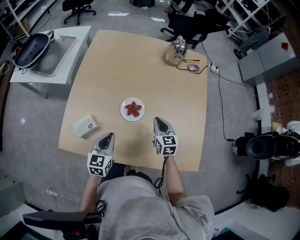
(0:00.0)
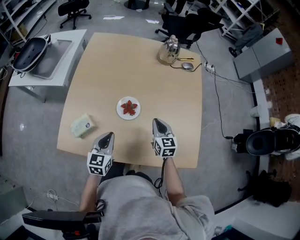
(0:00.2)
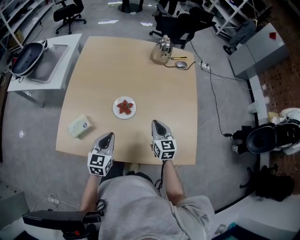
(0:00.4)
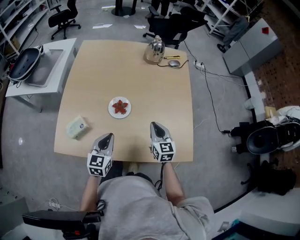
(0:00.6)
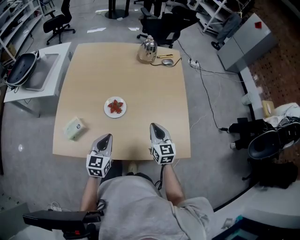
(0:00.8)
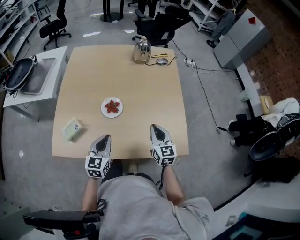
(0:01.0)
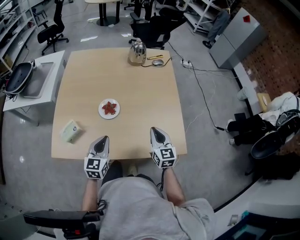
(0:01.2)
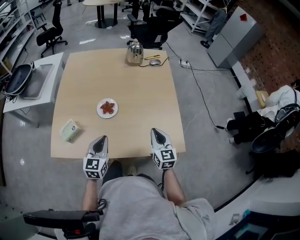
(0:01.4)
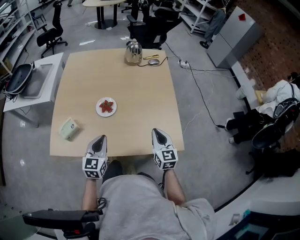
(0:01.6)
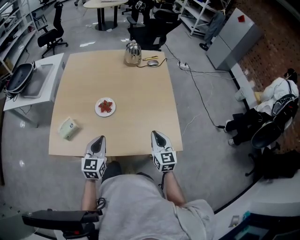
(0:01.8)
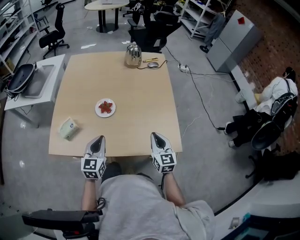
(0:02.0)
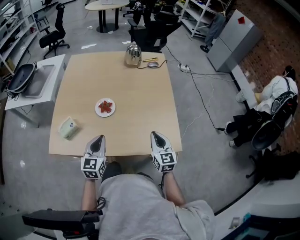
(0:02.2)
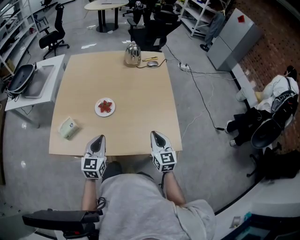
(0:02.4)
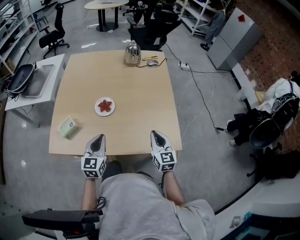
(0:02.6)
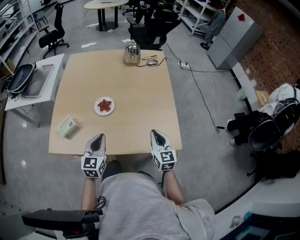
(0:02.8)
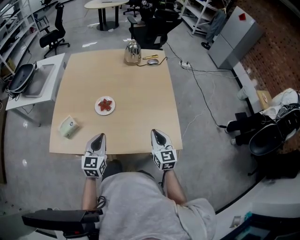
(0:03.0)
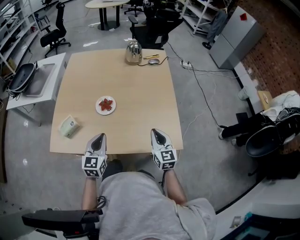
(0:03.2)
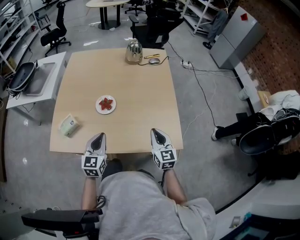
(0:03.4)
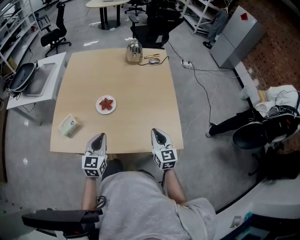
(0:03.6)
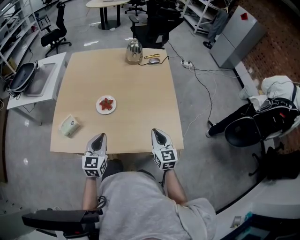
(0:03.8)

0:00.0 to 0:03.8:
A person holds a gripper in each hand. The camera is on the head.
0:00.0 to 0:01.2: The left gripper is displaced to the right, backward and upward by some 15 cm, while the right gripper heads backward, to the right and upward, covering roughly 20 cm.
0:01.2 to 0:02.6: The right gripper is displaced backward by roughly 5 cm.
0:02.6 to 0:03.8: Both grippers stay about where they are.

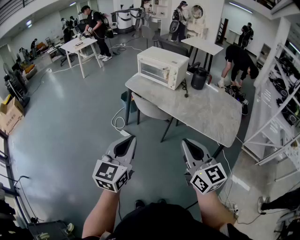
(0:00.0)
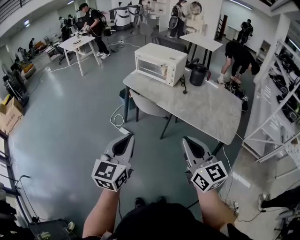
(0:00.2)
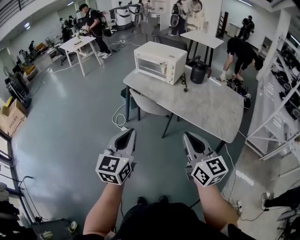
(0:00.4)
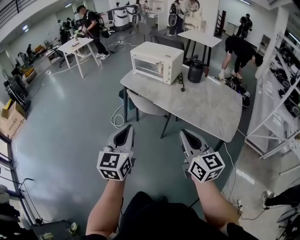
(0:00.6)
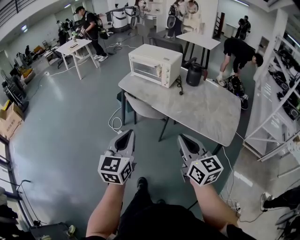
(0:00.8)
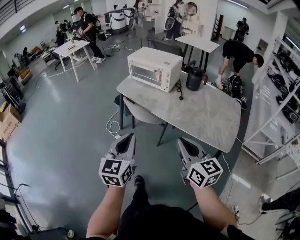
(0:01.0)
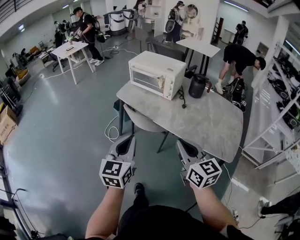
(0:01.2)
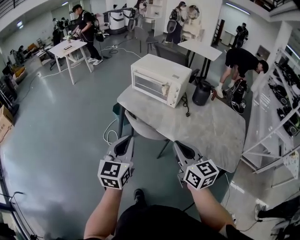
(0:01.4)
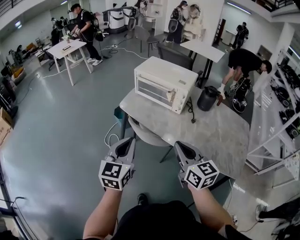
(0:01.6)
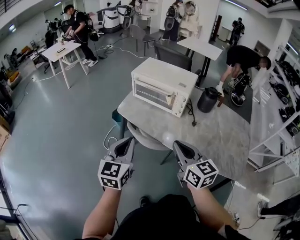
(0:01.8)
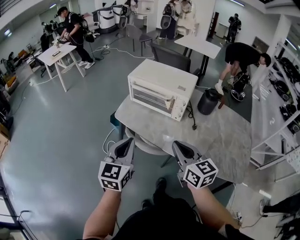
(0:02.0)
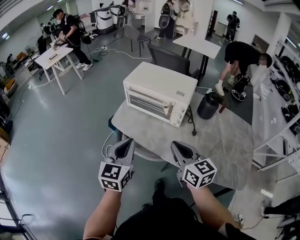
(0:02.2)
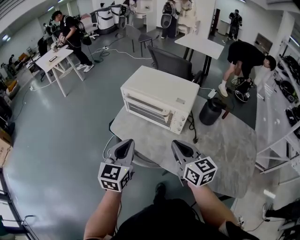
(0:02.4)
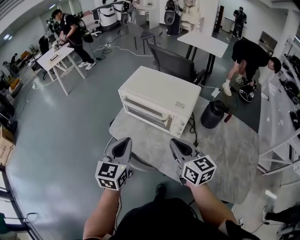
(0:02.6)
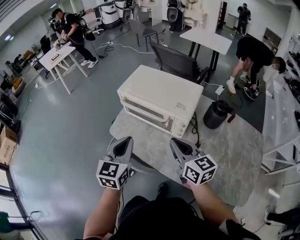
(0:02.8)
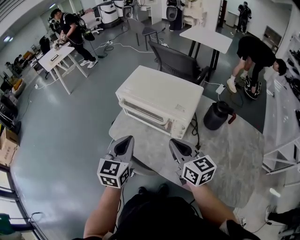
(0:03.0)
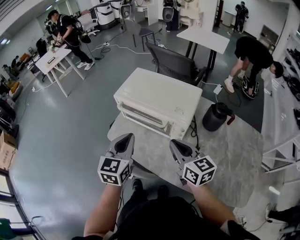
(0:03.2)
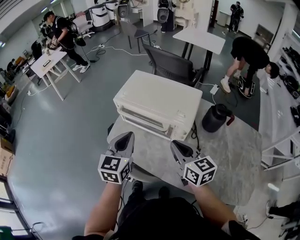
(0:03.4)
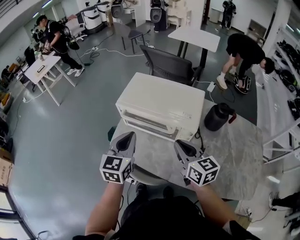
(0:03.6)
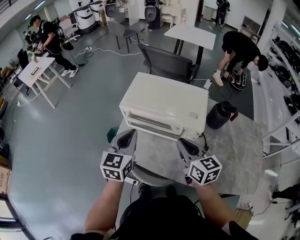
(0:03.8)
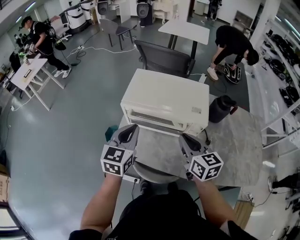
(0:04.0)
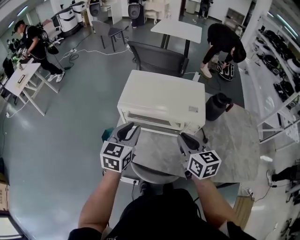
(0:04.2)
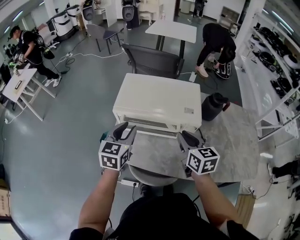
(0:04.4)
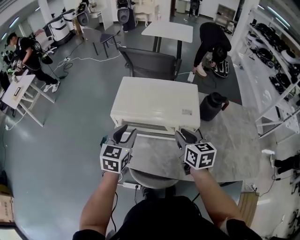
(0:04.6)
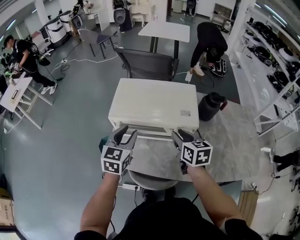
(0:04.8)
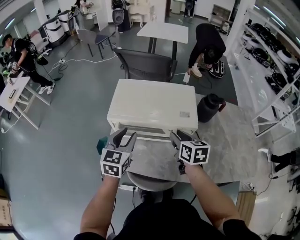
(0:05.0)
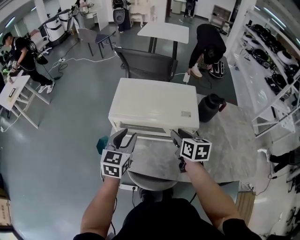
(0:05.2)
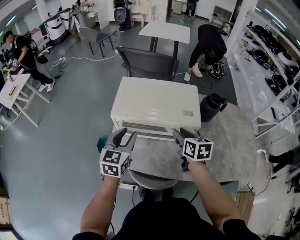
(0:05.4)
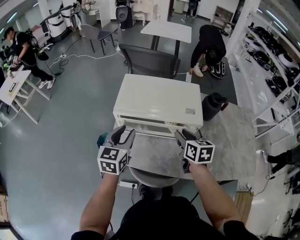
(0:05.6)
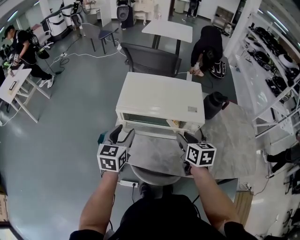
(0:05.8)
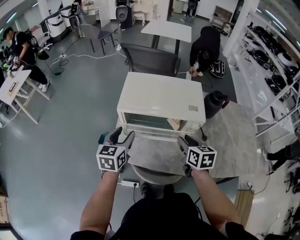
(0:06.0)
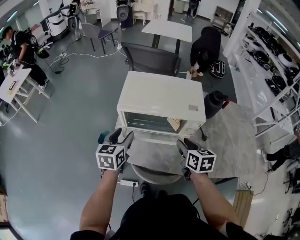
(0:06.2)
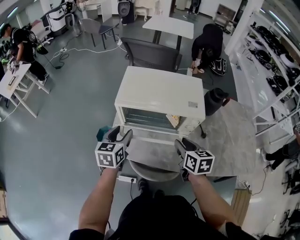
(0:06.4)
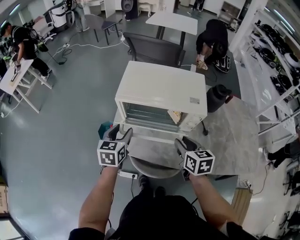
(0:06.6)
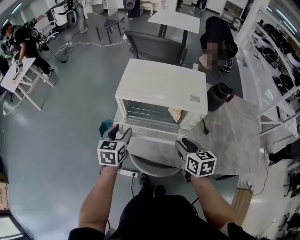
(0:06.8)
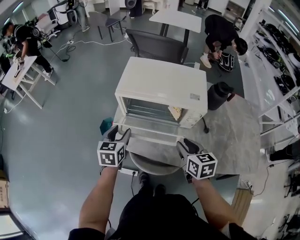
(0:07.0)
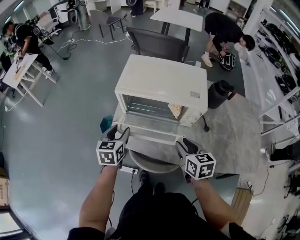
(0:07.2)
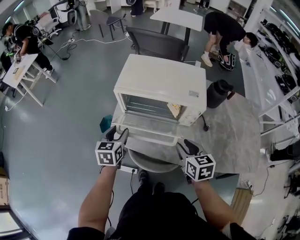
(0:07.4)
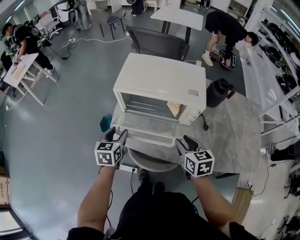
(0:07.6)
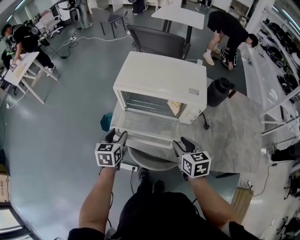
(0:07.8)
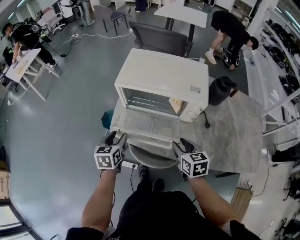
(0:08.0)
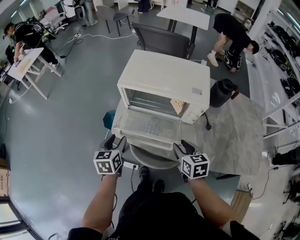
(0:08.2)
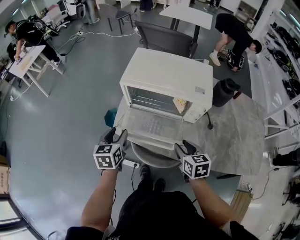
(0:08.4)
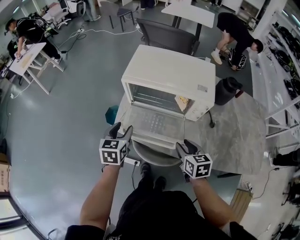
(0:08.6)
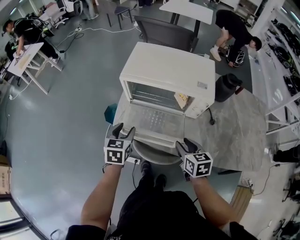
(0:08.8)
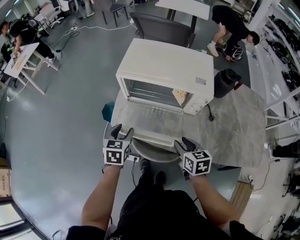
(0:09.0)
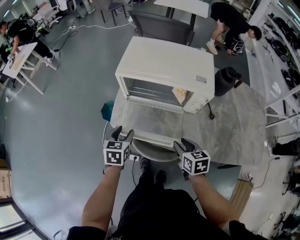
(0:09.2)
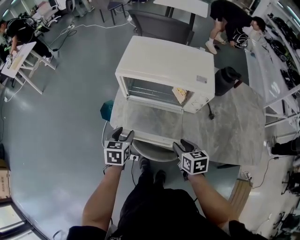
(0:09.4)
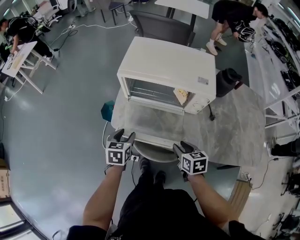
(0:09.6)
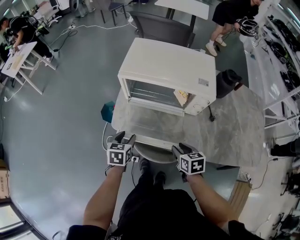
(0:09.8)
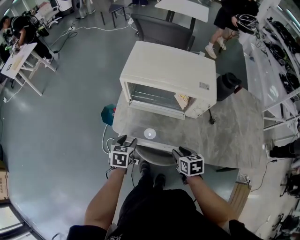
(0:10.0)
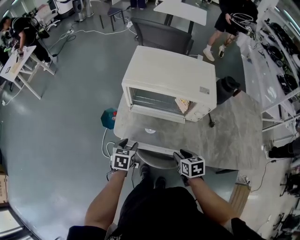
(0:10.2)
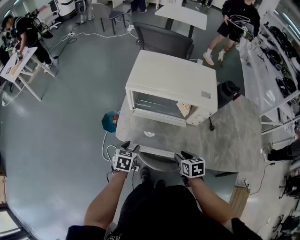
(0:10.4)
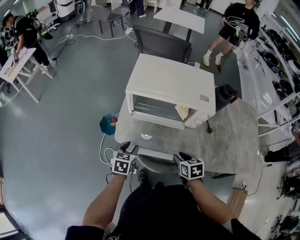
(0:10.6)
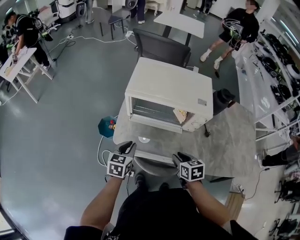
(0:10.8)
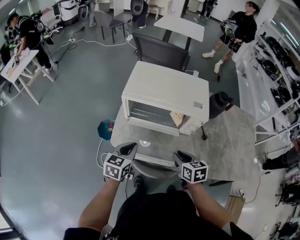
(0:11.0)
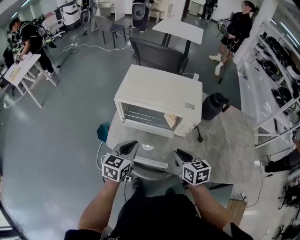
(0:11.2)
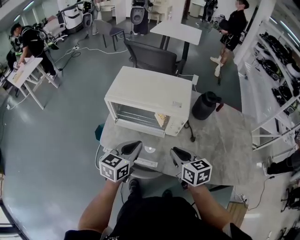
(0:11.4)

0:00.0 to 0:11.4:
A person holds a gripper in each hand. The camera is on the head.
0:00.0 to 0:01.4: Both grippers travel together forward, approximately 25 cm.
0:01.4 to 0:02.8: Both grippers travel together forward, about 35 cm.
0:02.8 to 0:04.2: The right gripper is displaced forward by about 10 cm, and turns by about 30 degrees; the left gripper moves forward, about 15 cm, swivels roughly 20 degrees, and opens its fingers.
0:04.2 to 0:05.6: The right gripper heads downward, covering roughly 5 cm, and opens up.
0:05.6 to 0:07.2: The left gripper travels downward and backward by about 10 cm. The right gripper is displaced backward by about 10 cm.
0:07.2 to 0:08.6: The right gripper shifts roughly 5 cm downward.
0:08.6 to 0:10.0: Both grippers travel together downward, about 10 cm.
0:10.0 to 0:11.4: The right gripper shifts approximately 15 cm upward, swivels roughly 20 degrees, and closes up, while the left gripper moves upward and to the right, some 25 cm, swivels roughly 30 degrees, and closes up.

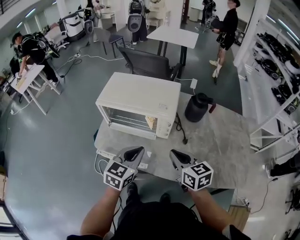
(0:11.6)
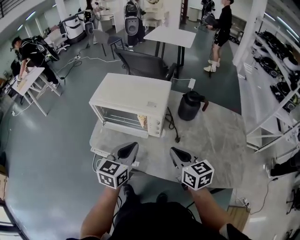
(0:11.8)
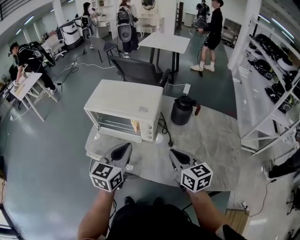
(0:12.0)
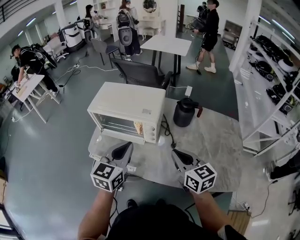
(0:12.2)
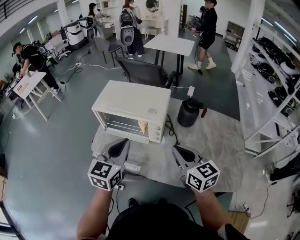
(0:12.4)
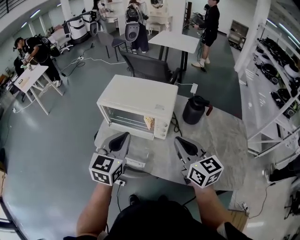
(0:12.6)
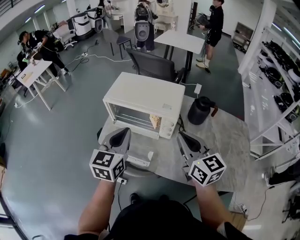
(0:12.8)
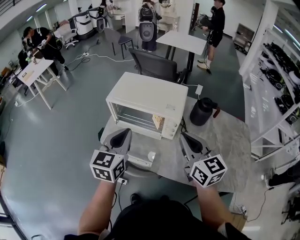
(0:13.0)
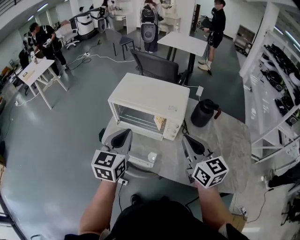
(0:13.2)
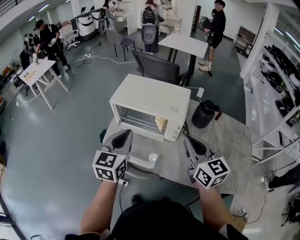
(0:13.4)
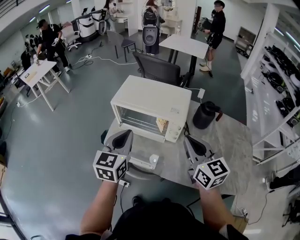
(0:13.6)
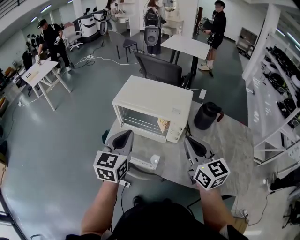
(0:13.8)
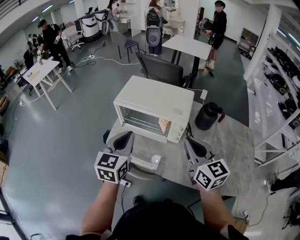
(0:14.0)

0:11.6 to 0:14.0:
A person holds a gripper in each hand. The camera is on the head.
0:11.6 to 0:12.8: The right gripper shifts about 10 cm upward. The left gripper goes approximately 10 cm upward and to the left, and rotates approximately 20 degrees.
0:12.8 to 0:14.0: There are only small adjustments of the grippers.

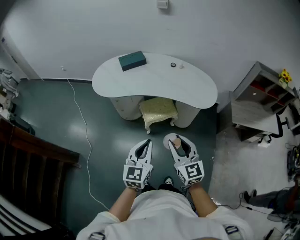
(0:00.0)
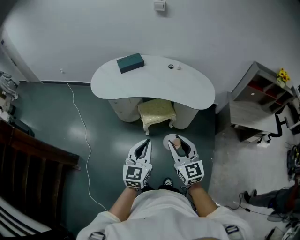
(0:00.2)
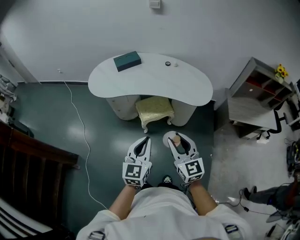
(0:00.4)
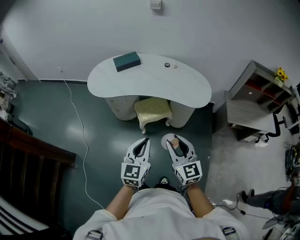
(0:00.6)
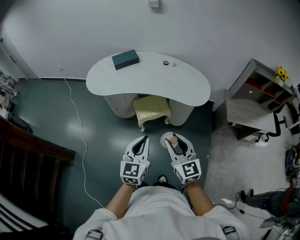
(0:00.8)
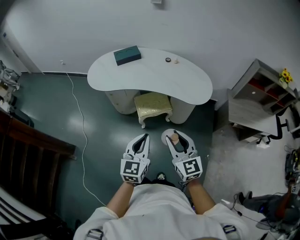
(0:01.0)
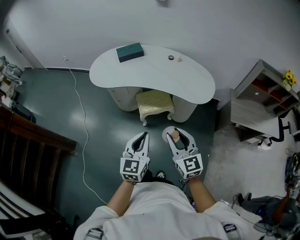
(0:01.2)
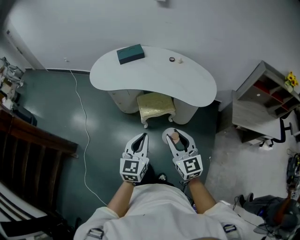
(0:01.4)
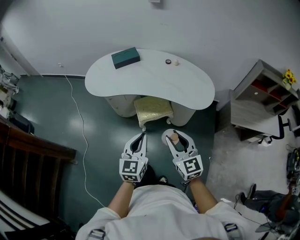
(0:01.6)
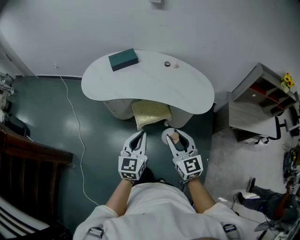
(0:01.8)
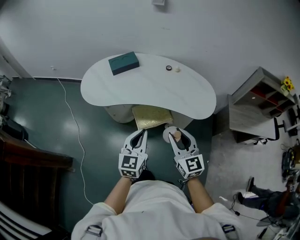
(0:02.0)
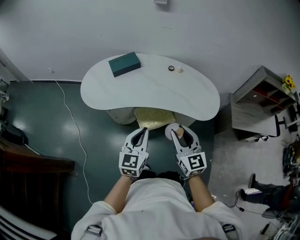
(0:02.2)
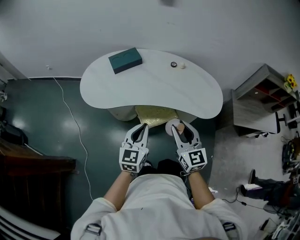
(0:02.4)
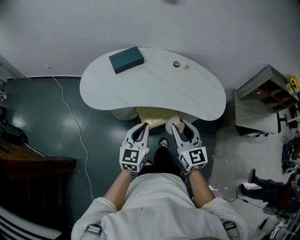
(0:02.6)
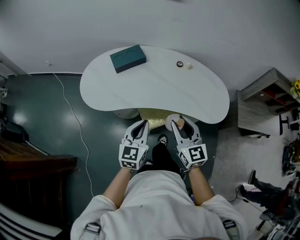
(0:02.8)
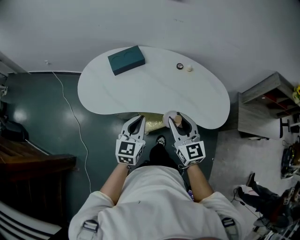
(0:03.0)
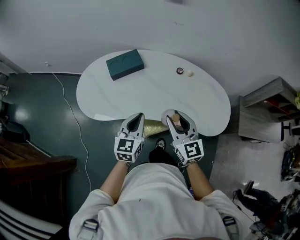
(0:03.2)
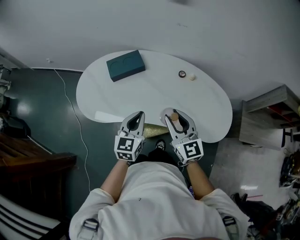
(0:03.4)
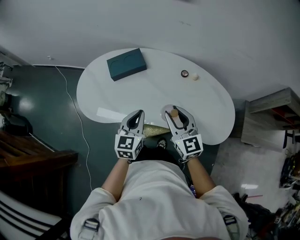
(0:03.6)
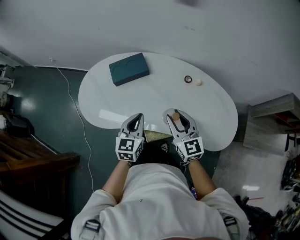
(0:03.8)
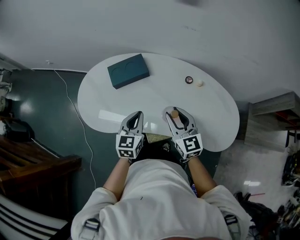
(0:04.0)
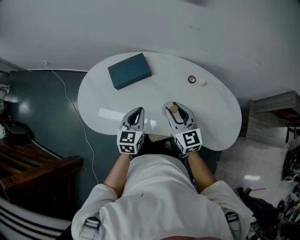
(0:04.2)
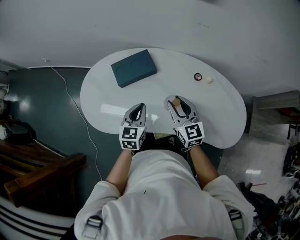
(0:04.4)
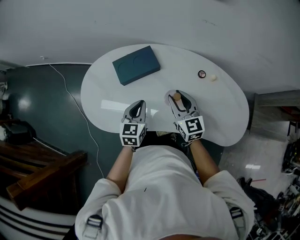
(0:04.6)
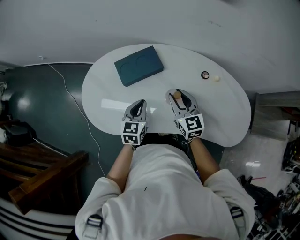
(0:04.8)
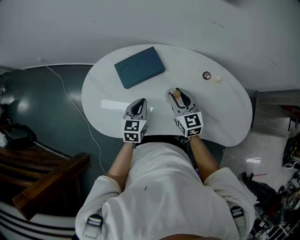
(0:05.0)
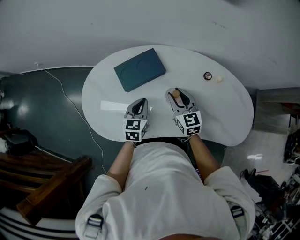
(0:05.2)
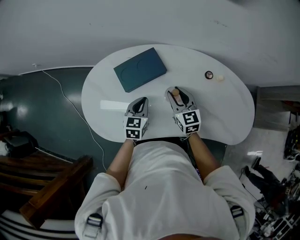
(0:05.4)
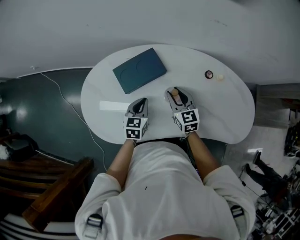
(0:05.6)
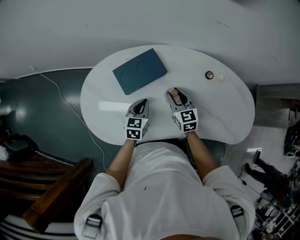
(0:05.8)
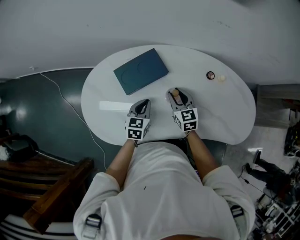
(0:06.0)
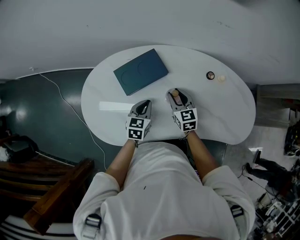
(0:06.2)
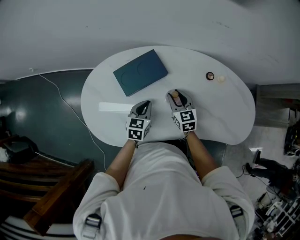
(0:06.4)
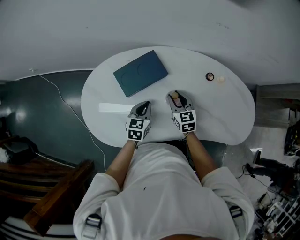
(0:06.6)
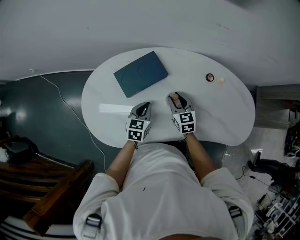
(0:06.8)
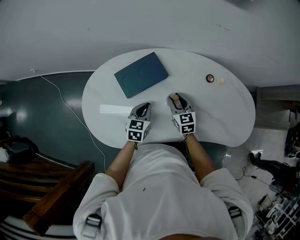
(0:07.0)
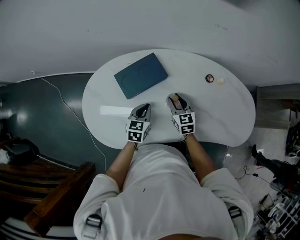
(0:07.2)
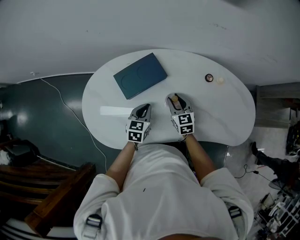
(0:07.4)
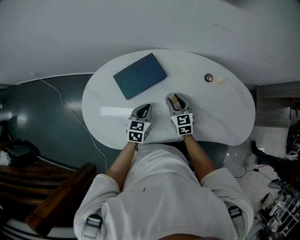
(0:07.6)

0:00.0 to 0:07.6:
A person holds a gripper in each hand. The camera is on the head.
0:00.0 to 0:01.6: The two grippers go some 10 cm to the right and forward.
0:01.6 to 0:03.0: Both grippers move forward, roughly 30 cm.
0:03.0 to 0:04.6: Both grippers travel together forward, roughly 30 cm.
0:04.6 to 0:06.0: Both grippers travel together downward and forward, approximately 15 cm.
0:06.0 to 0:07.6: The grippers move only a little.
